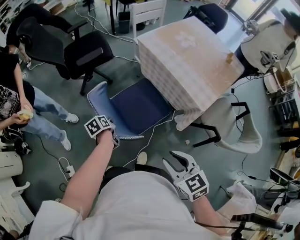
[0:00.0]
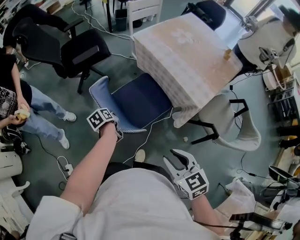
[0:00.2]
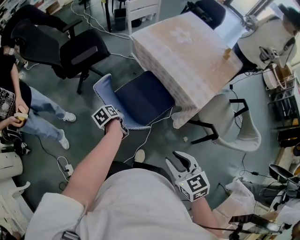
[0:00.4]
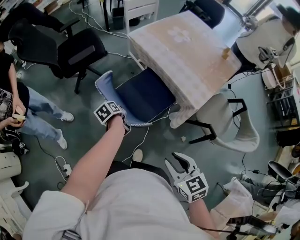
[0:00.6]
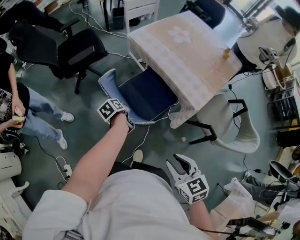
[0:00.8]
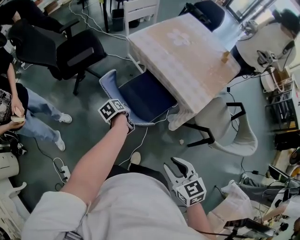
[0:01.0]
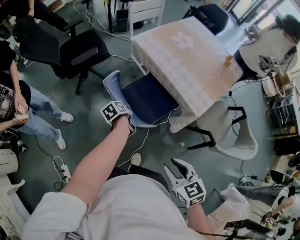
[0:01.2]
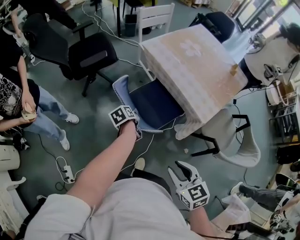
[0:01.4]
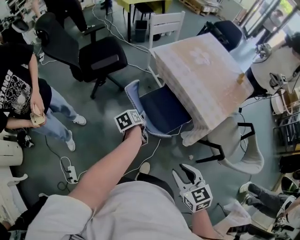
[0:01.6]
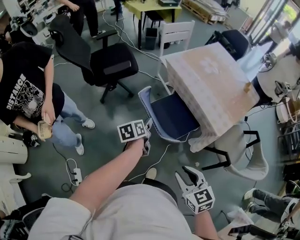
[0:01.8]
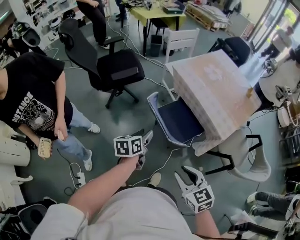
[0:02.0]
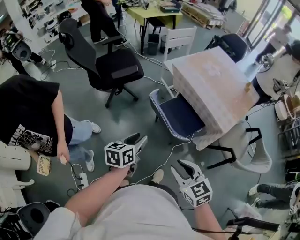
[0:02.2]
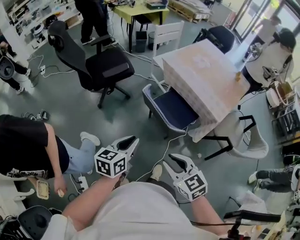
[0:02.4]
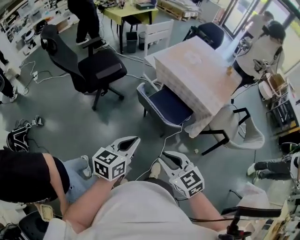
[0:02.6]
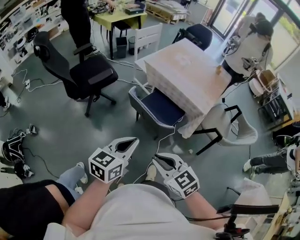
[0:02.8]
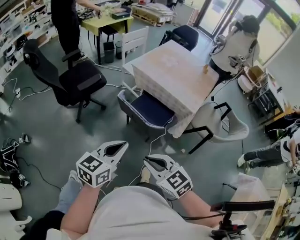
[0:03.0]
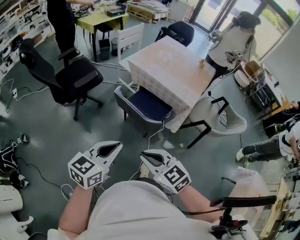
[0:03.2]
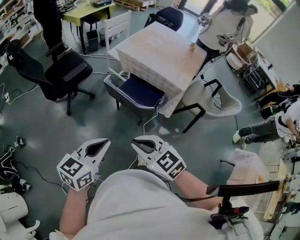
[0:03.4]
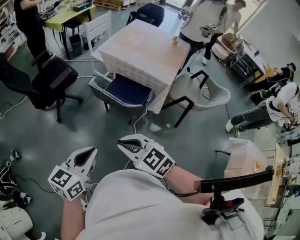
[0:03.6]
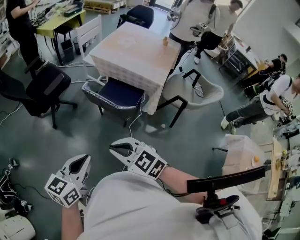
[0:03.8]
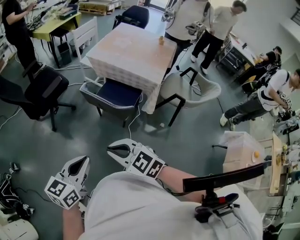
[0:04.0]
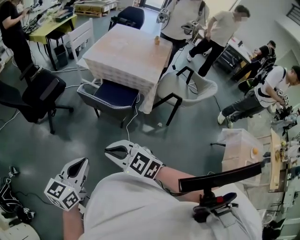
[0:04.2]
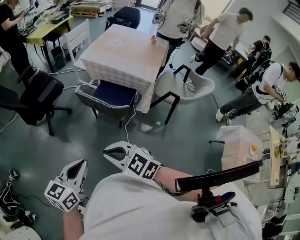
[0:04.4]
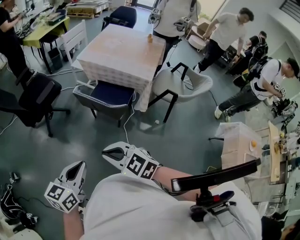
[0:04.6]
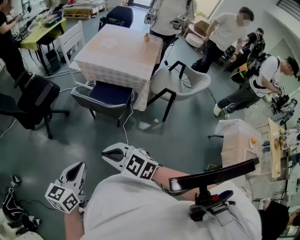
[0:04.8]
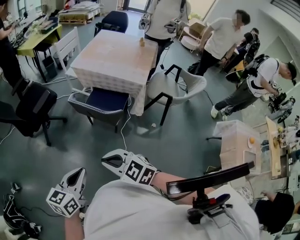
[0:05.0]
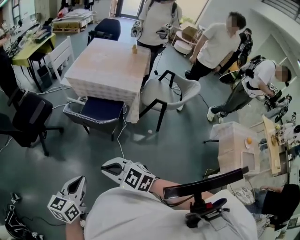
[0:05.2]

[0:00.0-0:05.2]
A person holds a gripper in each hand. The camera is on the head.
0:00.0 to 0:01.8: The right gripper goes to the right and returns, approximately 5 cm each way. The left gripper travels upward and to the right by about 15 cm, rotates roughly 20 degrees, and opens up.
0:01.8 to 0:03.4: The right gripper goes about 20 cm to the left, and closes; the left gripper is displaced backward and upward by some 35 cm, turns by some 60 degrees, and closes its fingers.
0:03.4 to 0:05.2: Both grippers travel together backward, approximately 5 cm.

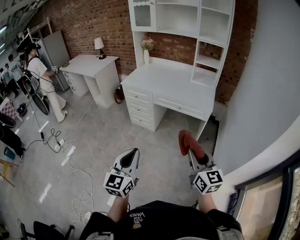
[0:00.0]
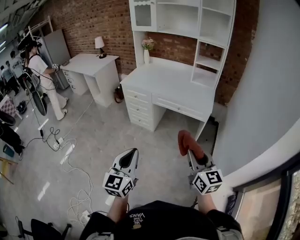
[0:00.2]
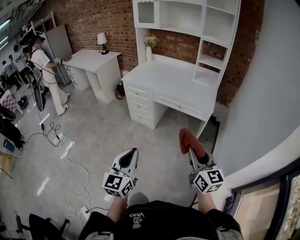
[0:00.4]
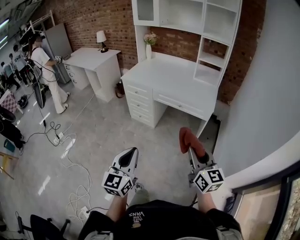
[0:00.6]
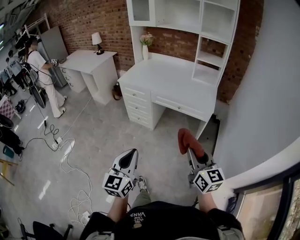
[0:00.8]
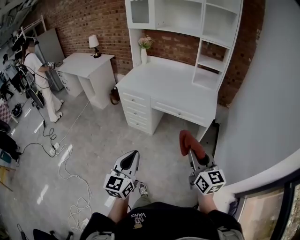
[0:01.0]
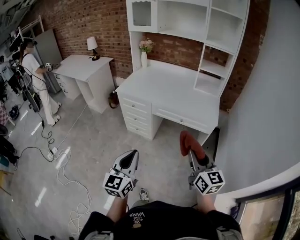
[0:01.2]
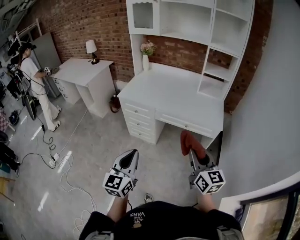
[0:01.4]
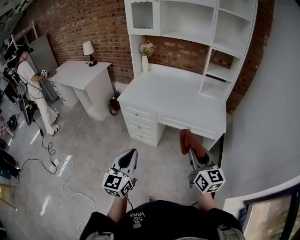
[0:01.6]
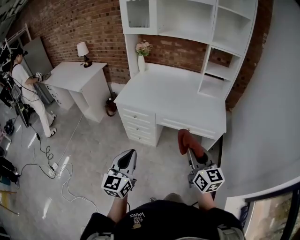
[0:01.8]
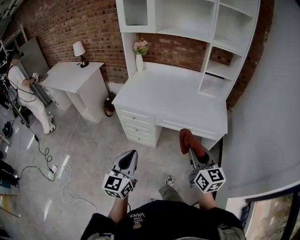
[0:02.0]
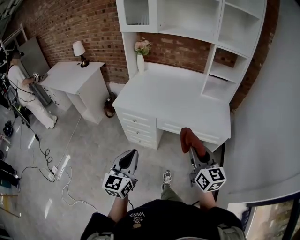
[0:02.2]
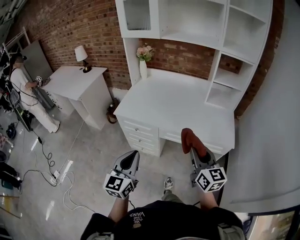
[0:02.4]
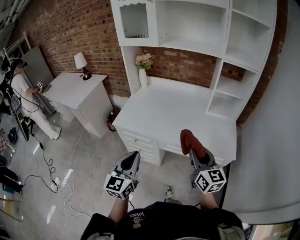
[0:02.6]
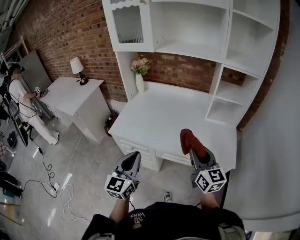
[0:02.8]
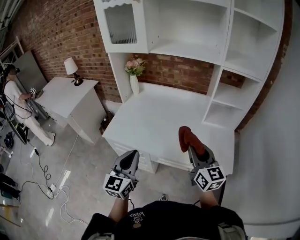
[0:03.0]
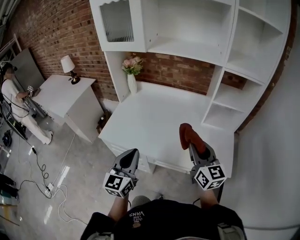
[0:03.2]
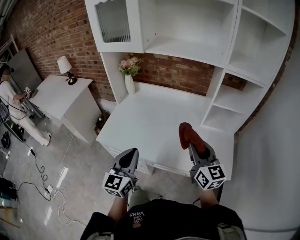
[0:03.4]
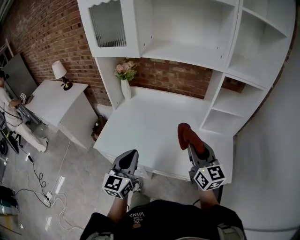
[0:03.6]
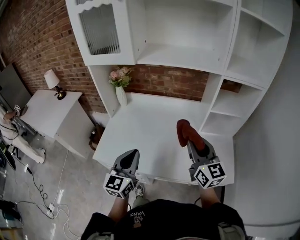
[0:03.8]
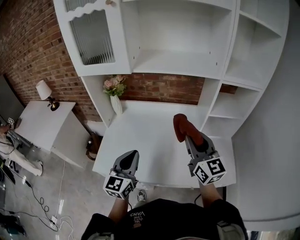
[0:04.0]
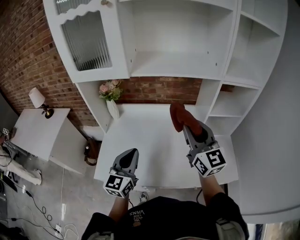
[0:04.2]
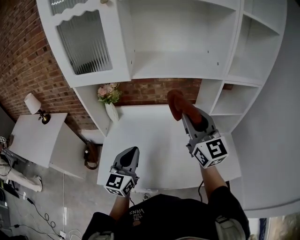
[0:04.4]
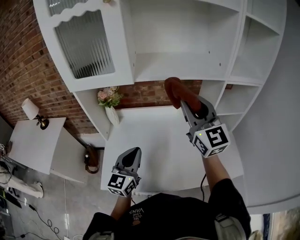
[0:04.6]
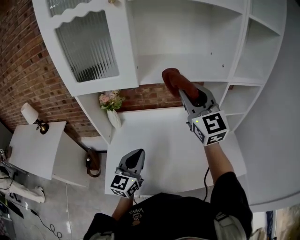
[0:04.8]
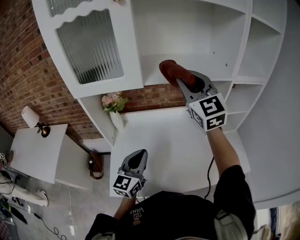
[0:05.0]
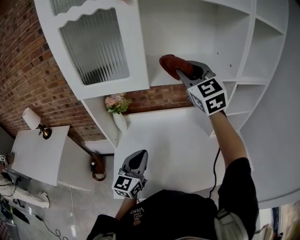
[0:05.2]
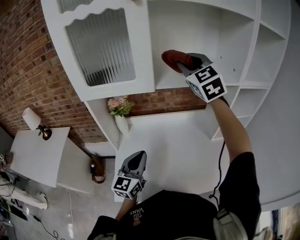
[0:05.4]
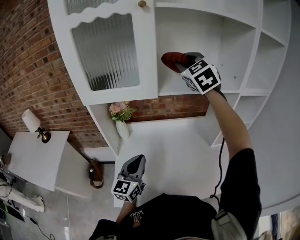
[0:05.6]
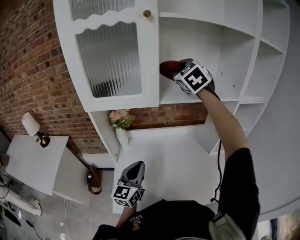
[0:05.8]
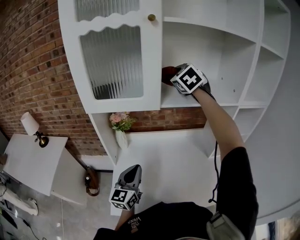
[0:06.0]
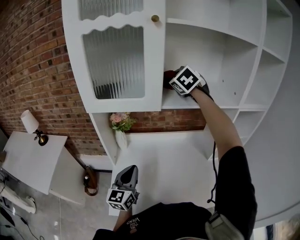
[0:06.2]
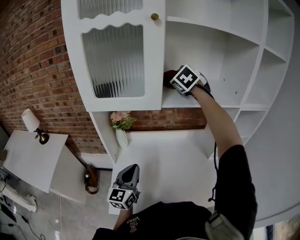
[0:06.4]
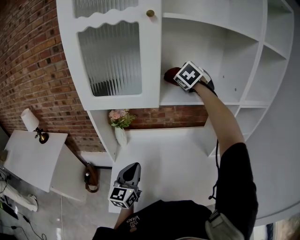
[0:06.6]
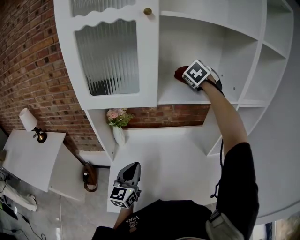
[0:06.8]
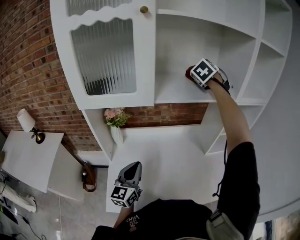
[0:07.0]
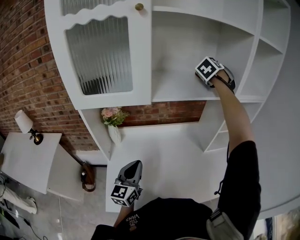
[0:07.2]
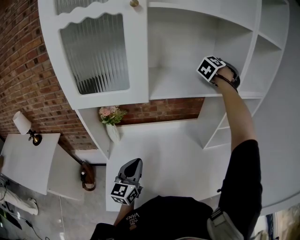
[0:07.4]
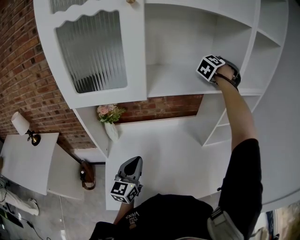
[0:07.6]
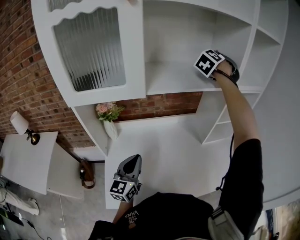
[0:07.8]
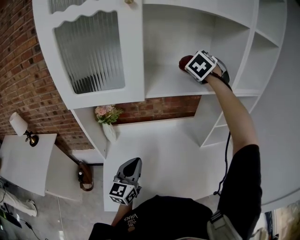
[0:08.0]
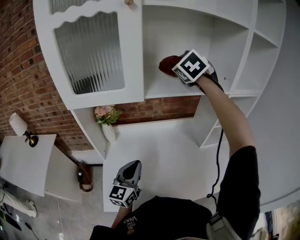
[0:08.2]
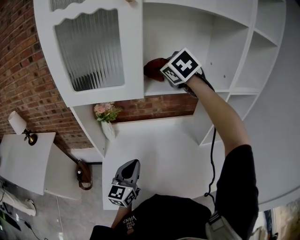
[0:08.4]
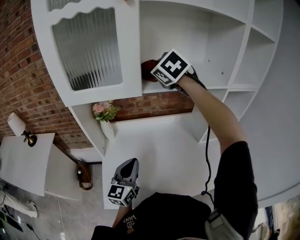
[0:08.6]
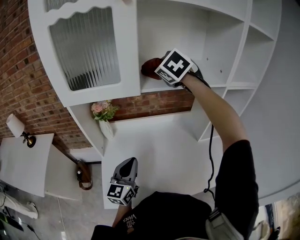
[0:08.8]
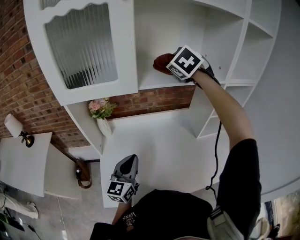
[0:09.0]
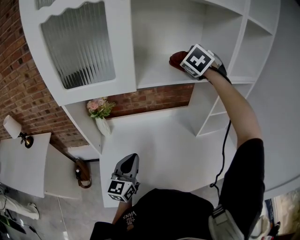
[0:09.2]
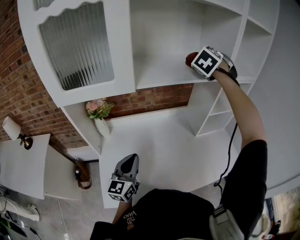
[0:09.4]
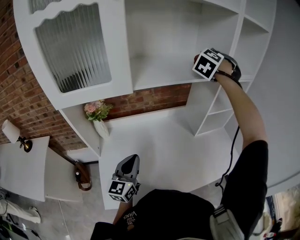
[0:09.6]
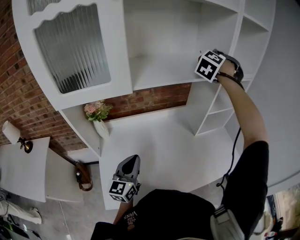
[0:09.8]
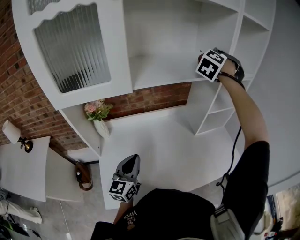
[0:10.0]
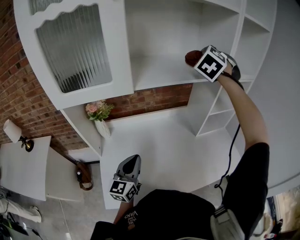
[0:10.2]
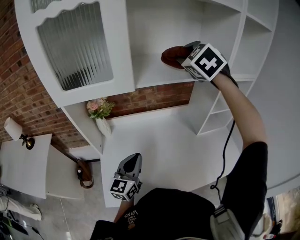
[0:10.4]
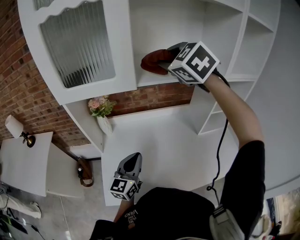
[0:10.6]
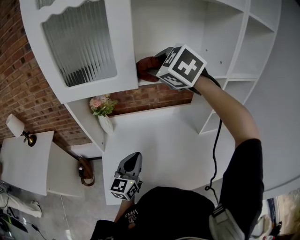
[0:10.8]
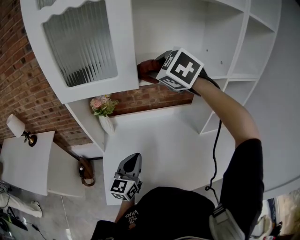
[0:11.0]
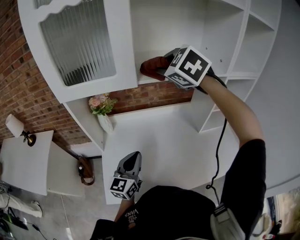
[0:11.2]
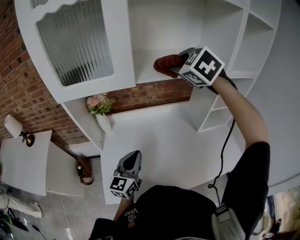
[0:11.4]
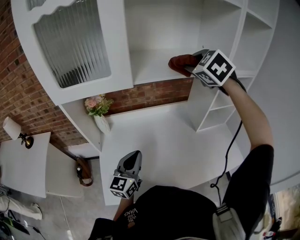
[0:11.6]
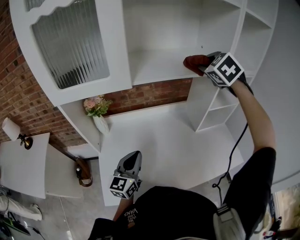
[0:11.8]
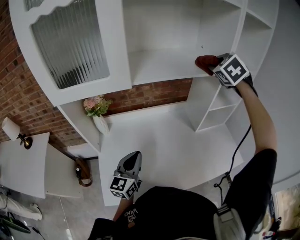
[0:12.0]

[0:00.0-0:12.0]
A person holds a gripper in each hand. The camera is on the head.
0:00.0 to 0:01.6: The two grippers go roughly 30 cm forward.
0:01.6 to 0:03.0: The grippers both shift forward by some 40 cm.
0:03.0 to 0:04.4: The right gripper is displaced forward and upward by roughly 30 cm, and rotates approximately 20 degrees. The left gripper moves forward, some 30 cm.
0:04.4 to 0:06.0: The right gripper is displaced forward and to the left by roughly 30 cm, and tilts its fingers some 30 degrees downward; the left gripper is displaced to the left and forward by roughly 15 cm.
0:06.0 to 0:07.6: The left gripper changes place by roughly 5 cm. The right gripper moves roughly 30 cm, and changes its angle by some 50 degrees.
0:07.6 to 0:09.0: The right gripper ends up about 20 cm from where it was, and turns by roughly 40 degrees.
0:09.0 to 0:10.4: The right gripper goes to the right and returns, roughly 20 cm each way.
0:10.4 to 0:12.0: The right gripper goes roughly 15 cm to the right.

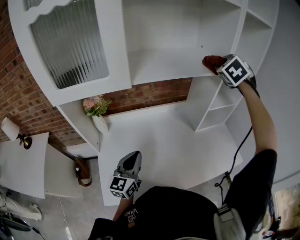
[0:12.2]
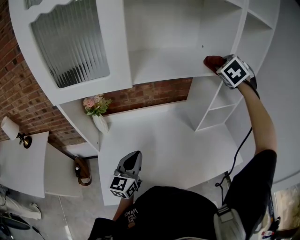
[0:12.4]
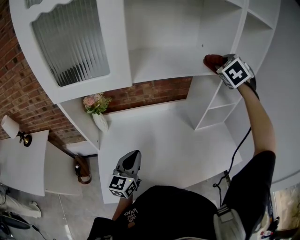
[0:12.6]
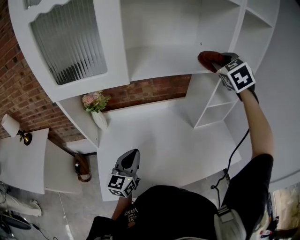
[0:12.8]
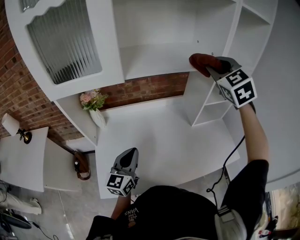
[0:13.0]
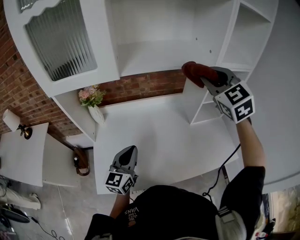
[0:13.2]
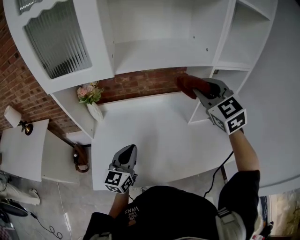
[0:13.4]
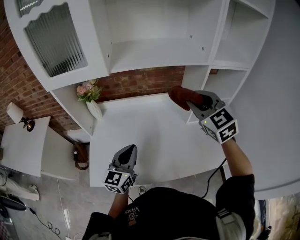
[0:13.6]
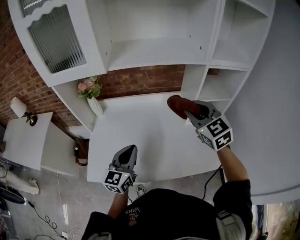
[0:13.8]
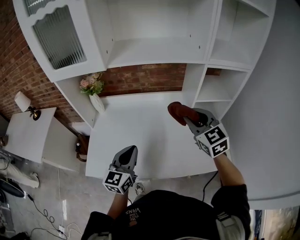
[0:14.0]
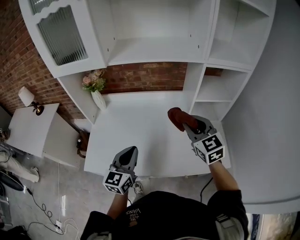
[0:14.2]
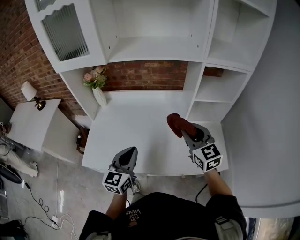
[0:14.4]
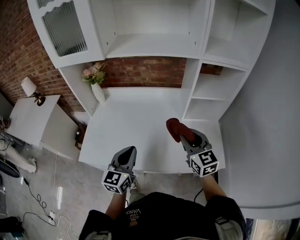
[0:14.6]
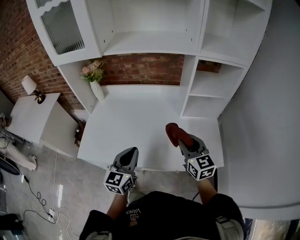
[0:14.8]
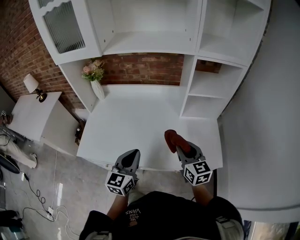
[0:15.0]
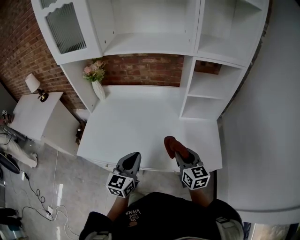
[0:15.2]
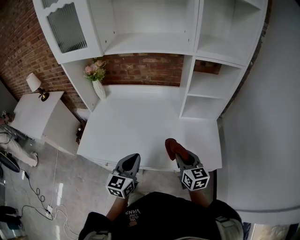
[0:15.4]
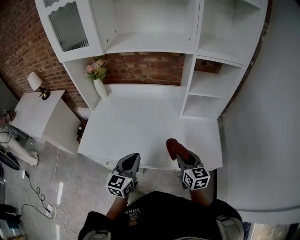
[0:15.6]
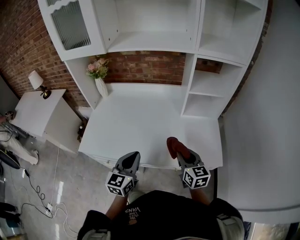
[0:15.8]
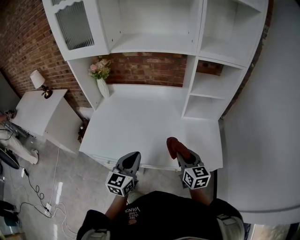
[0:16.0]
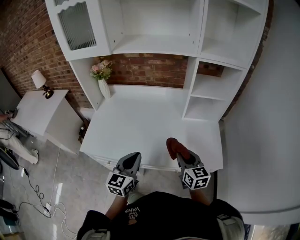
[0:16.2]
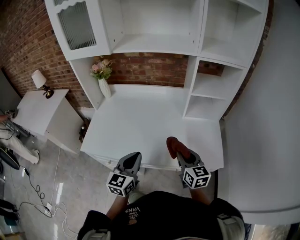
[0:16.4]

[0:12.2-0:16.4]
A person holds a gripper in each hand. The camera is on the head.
0:12.2 to 0:13.6: The left gripper travels to the right by some 10 cm, while the right gripper moves backward and downward, approximately 20 cm, and changes its angle by about 40 degrees.
0:13.6 to 0:15.0: The right gripper heads downward, backward and to the right, covering some 30 cm, and changes its angle by roughly 30 degrees; the left gripper heads to the right and backward, covering approximately 20 cm.
0:15.0 to 0:16.4: The right gripper moves some 5 cm.

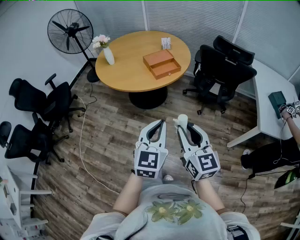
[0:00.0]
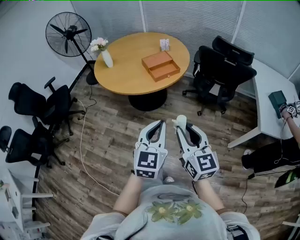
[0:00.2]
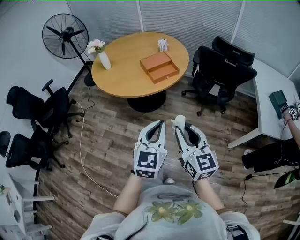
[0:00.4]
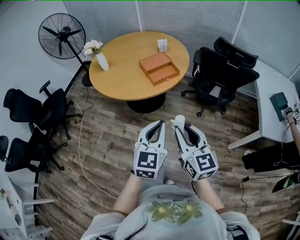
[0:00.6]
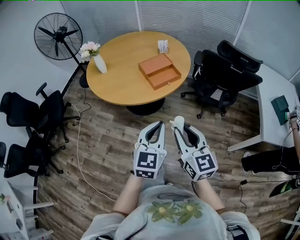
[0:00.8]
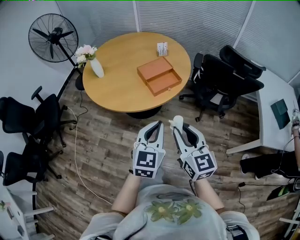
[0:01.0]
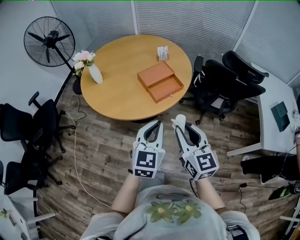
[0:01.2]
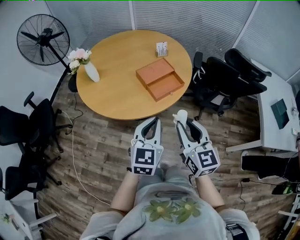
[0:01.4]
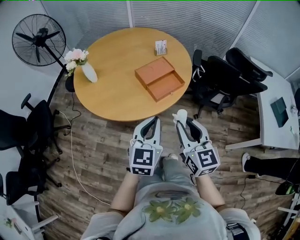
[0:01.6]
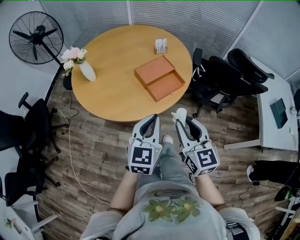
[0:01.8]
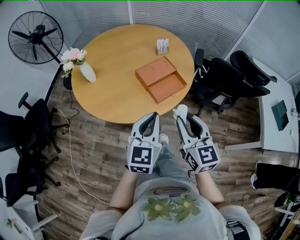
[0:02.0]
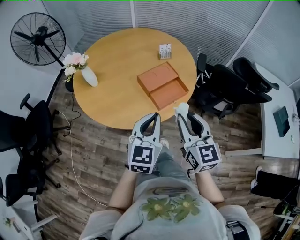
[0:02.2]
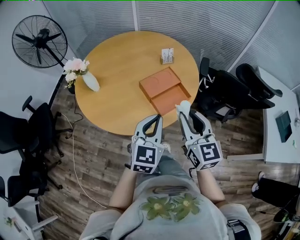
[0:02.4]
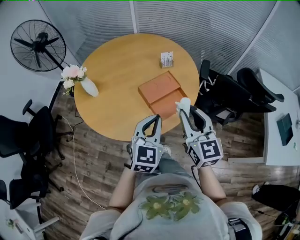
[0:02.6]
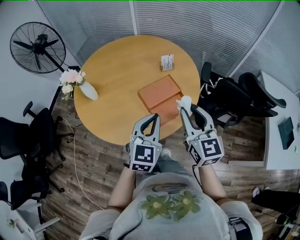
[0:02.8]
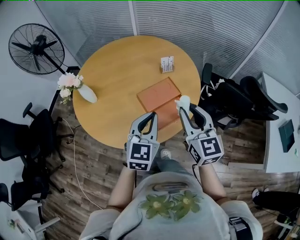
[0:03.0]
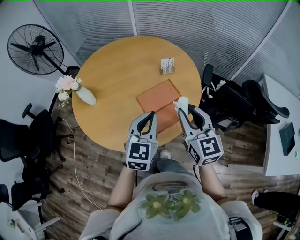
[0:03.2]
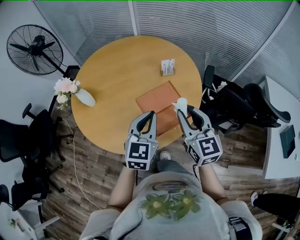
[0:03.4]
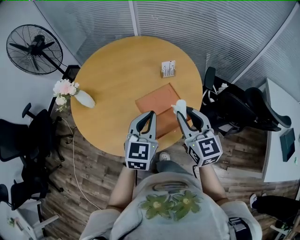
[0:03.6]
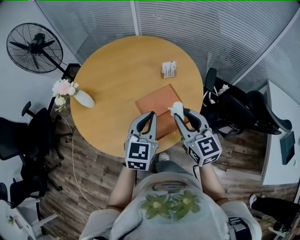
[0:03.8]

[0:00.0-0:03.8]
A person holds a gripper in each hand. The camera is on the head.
0:00.0 to 0:01.2: The two grippers go about 30 cm forward.
0:01.2 to 0:02.6: The two grippers go some 25 cm forward.
0:02.6 to 0:03.8: The grippers both shift forward by some 15 cm.
